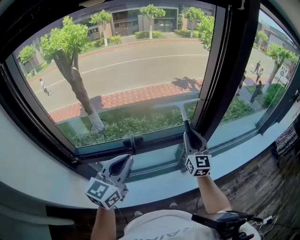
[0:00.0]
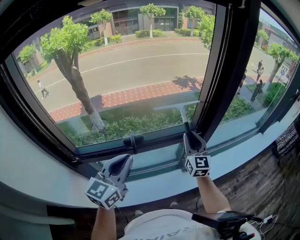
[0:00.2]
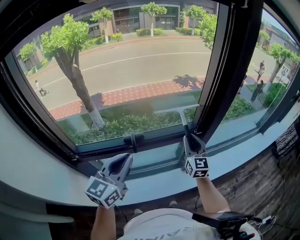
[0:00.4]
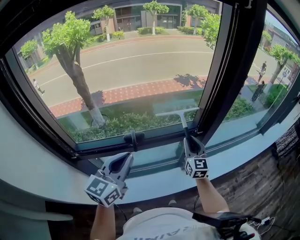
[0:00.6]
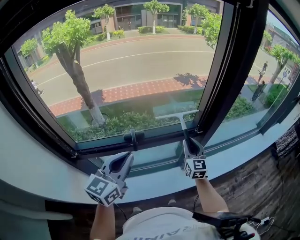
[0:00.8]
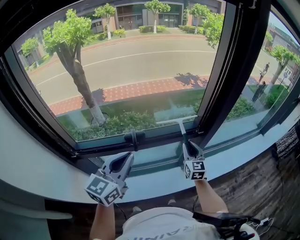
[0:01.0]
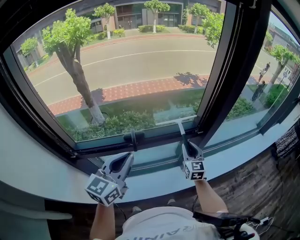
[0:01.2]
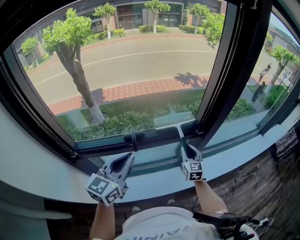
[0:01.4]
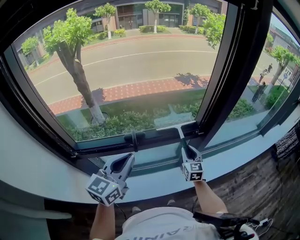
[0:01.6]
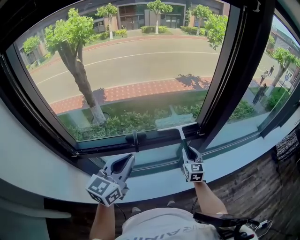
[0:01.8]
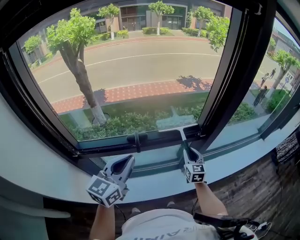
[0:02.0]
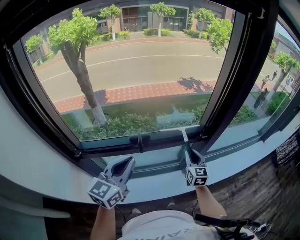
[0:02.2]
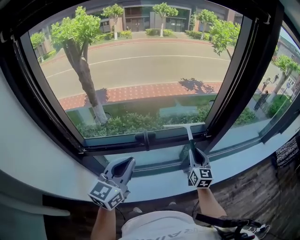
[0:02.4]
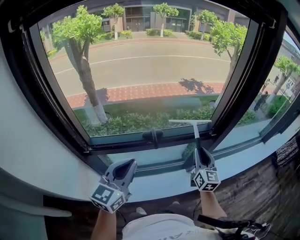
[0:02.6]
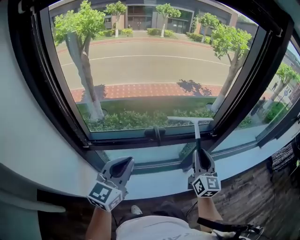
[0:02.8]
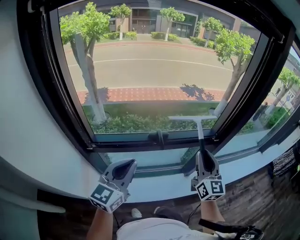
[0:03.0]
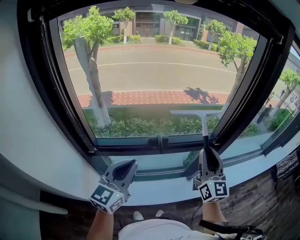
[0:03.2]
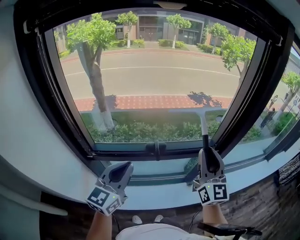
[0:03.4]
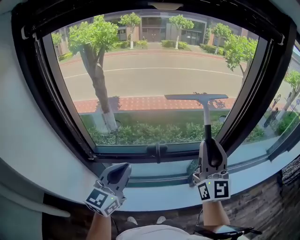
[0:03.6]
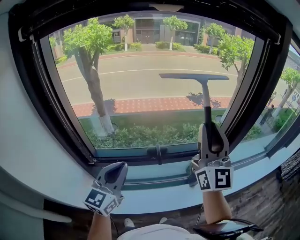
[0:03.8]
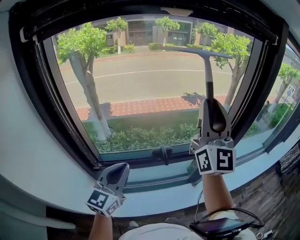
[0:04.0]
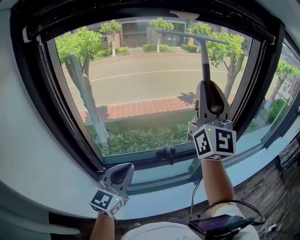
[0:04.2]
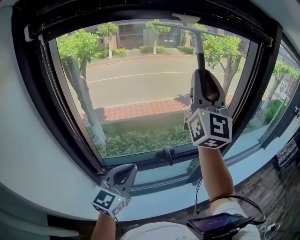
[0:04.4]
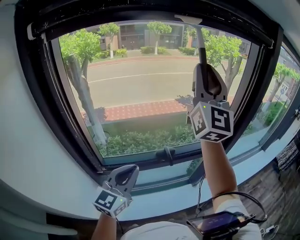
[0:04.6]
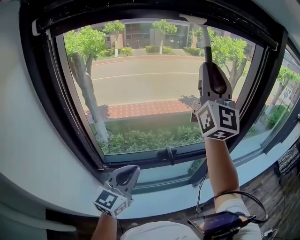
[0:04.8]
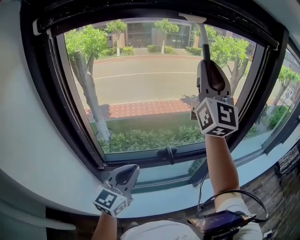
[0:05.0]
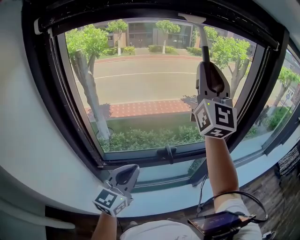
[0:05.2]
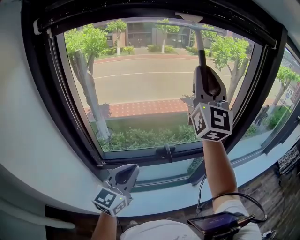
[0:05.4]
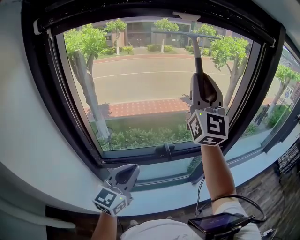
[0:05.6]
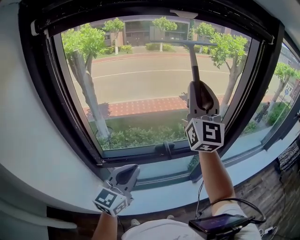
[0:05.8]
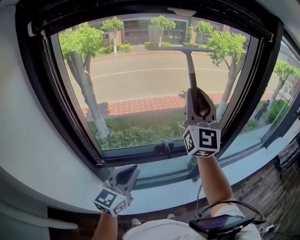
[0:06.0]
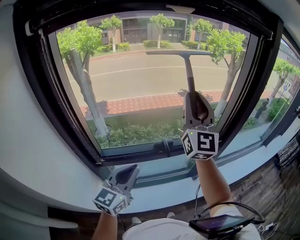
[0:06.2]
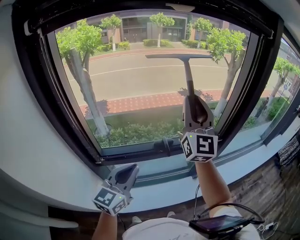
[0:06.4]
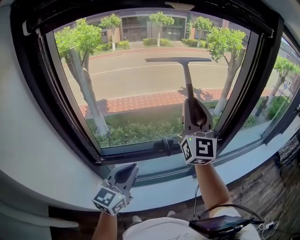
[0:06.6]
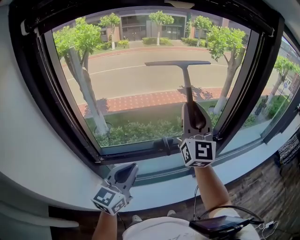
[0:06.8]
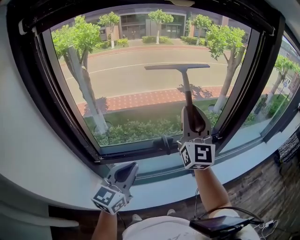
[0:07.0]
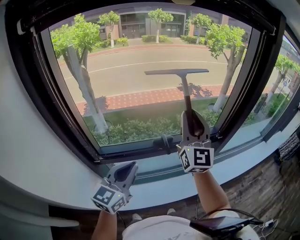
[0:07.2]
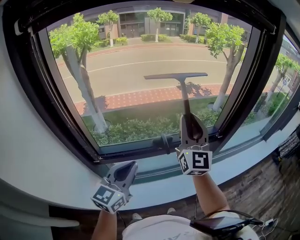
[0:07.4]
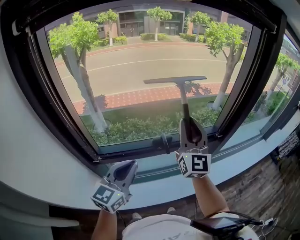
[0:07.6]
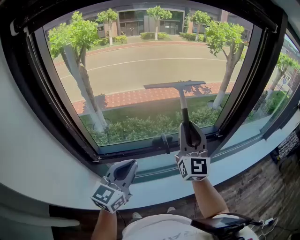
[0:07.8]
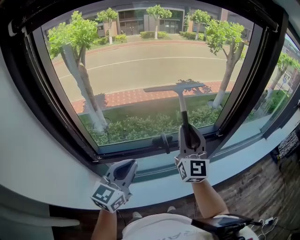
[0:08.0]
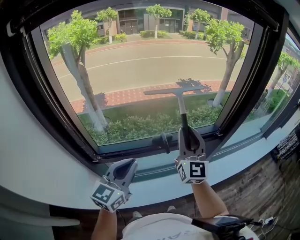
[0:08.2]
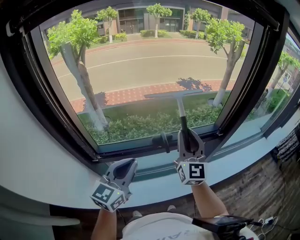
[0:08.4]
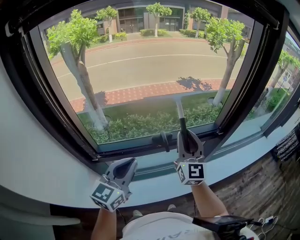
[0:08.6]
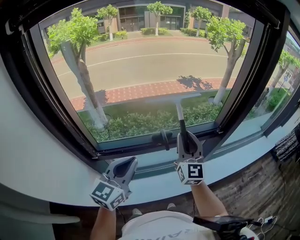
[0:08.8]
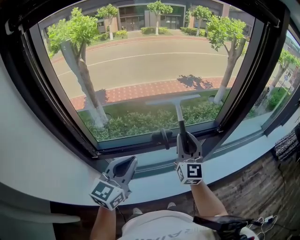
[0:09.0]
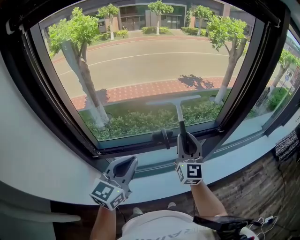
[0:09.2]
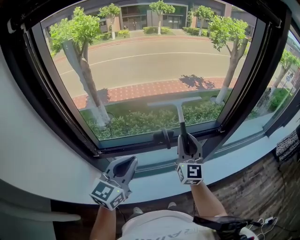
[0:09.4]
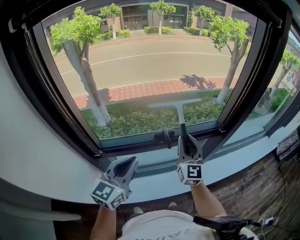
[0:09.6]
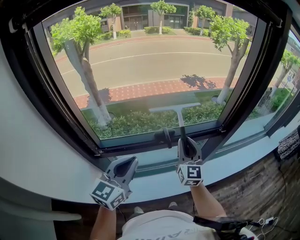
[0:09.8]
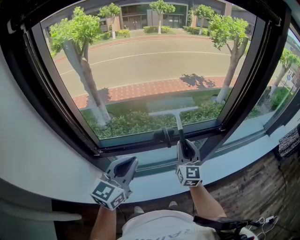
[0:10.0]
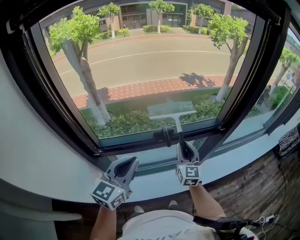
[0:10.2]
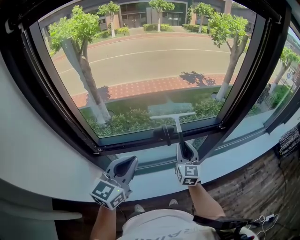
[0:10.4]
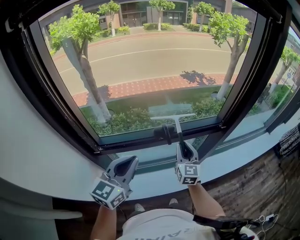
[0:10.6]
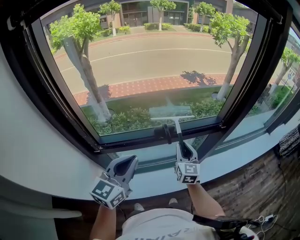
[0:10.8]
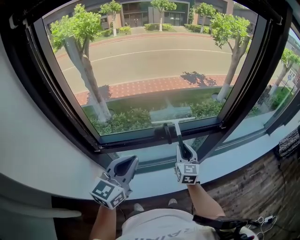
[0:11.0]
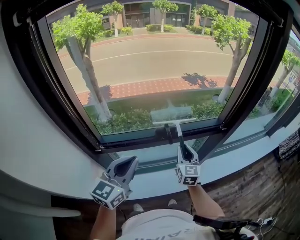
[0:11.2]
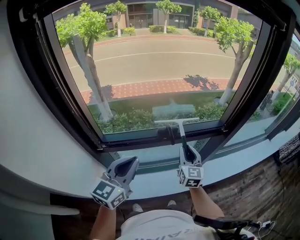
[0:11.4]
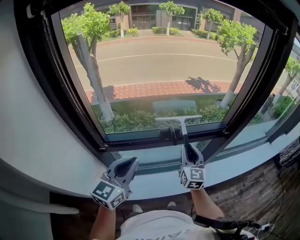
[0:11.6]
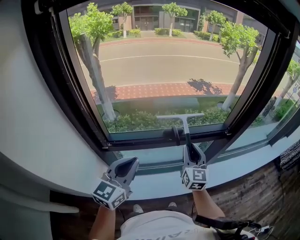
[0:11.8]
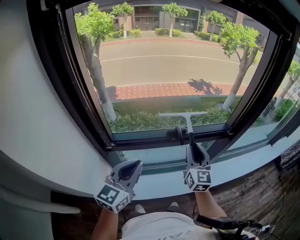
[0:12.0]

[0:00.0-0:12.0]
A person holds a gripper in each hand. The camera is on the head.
0:00.0 to 0:01.6: The right gripper moves downward, approximately 15 cm.
0:01.6 to 0:03.0: The right gripper shifts some 25 cm upward, backward and to the left, and turns by approximately 20 degrees; the left gripper heads to the left and backward, covering some 15 cm.
0:03.0 to 0:04.4: The right gripper travels upward by roughly 35 cm, and tilts its fingers some 30 degrees upward, while the left gripper moves to the left, roughly 5 cm.
0:04.4 to 0:06.0: The right gripper is displaced downward by about 10 cm.
0:06.0 to 0:07.6: The right gripper moves downward, approximately 15 cm.
0:07.6 to 0:09.0: The right gripper moves downward, about 10 cm.
0:09.0 to 0:10.4: The right gripper shifts some 10 cm downward.
0:10.4 to 0:12.0: The left gripper moves backward, approximately 5 cm. Meanwhile the right gripper is displaced upward by approximately 5 cm.

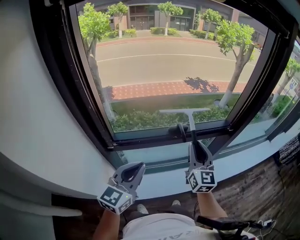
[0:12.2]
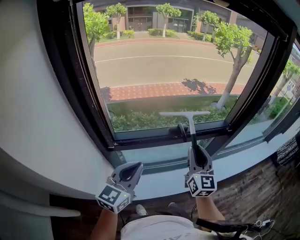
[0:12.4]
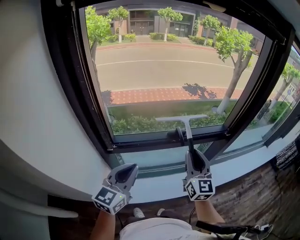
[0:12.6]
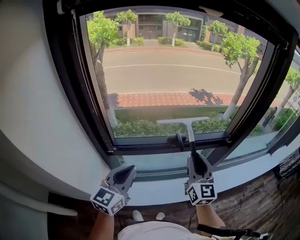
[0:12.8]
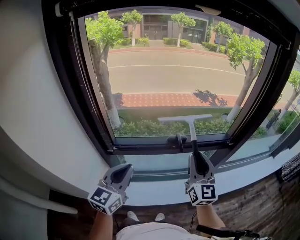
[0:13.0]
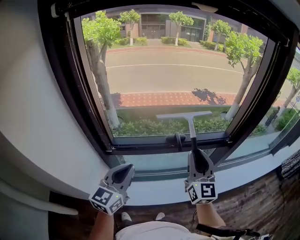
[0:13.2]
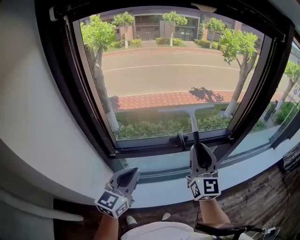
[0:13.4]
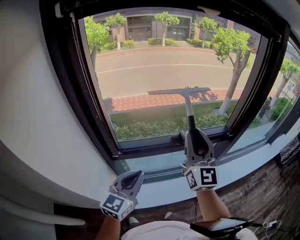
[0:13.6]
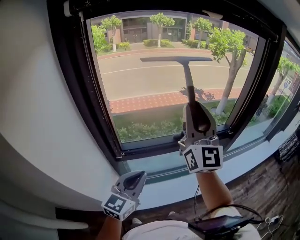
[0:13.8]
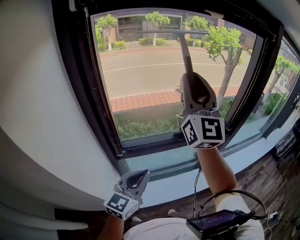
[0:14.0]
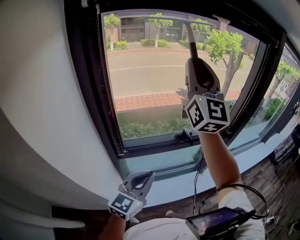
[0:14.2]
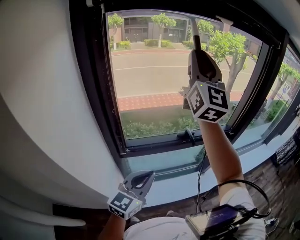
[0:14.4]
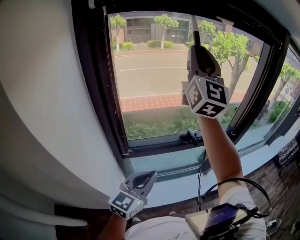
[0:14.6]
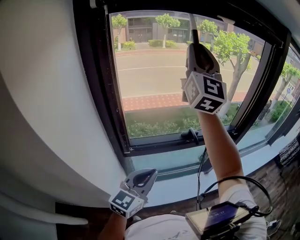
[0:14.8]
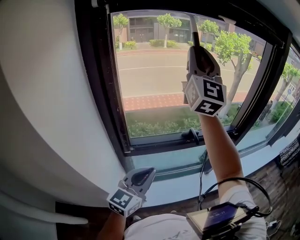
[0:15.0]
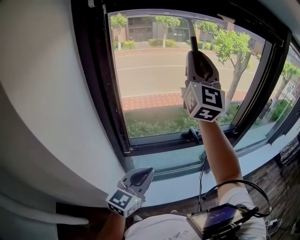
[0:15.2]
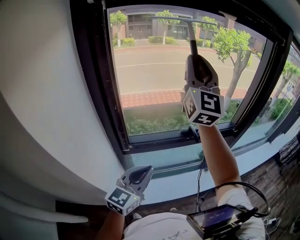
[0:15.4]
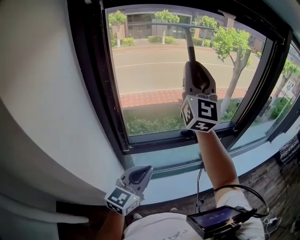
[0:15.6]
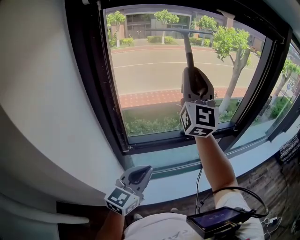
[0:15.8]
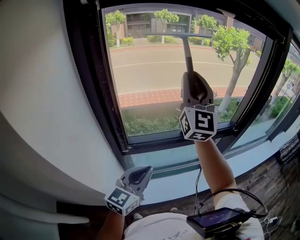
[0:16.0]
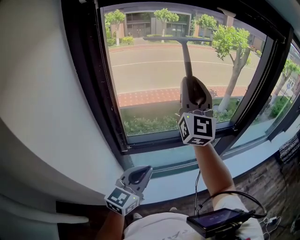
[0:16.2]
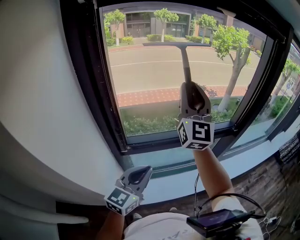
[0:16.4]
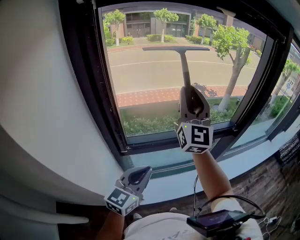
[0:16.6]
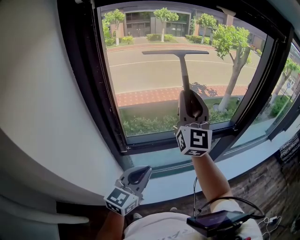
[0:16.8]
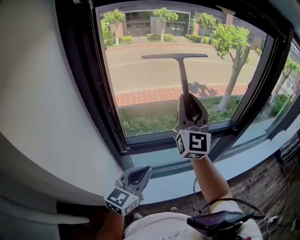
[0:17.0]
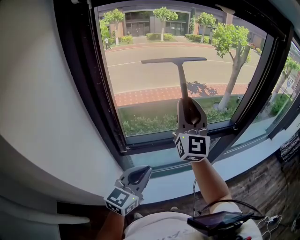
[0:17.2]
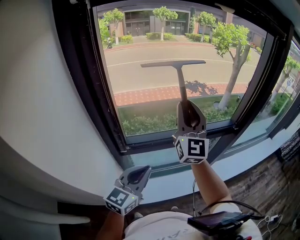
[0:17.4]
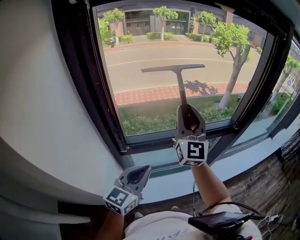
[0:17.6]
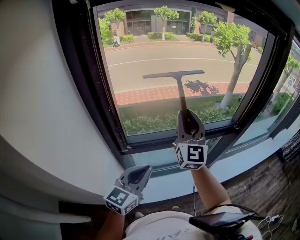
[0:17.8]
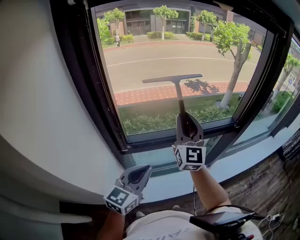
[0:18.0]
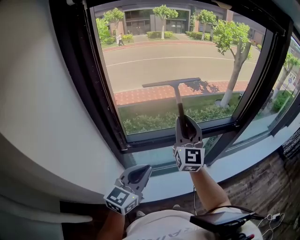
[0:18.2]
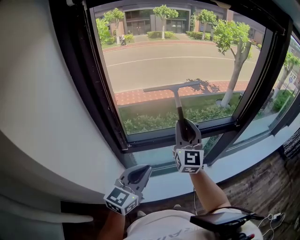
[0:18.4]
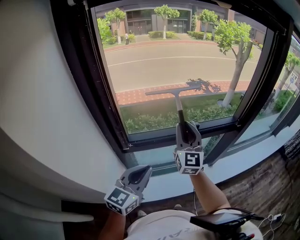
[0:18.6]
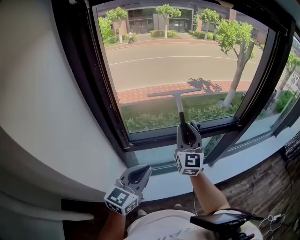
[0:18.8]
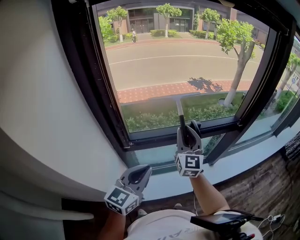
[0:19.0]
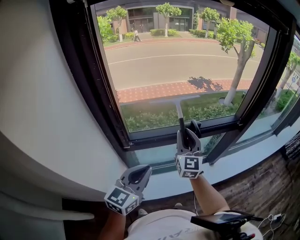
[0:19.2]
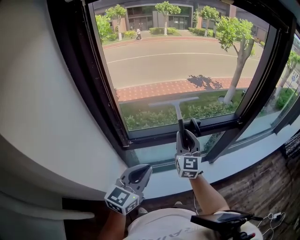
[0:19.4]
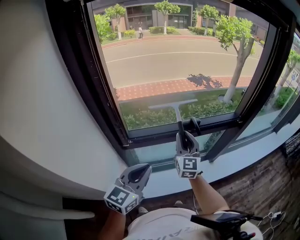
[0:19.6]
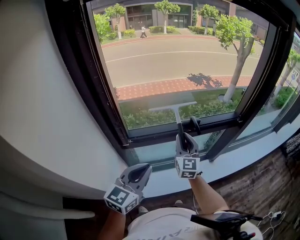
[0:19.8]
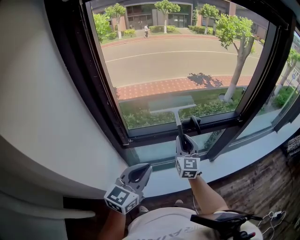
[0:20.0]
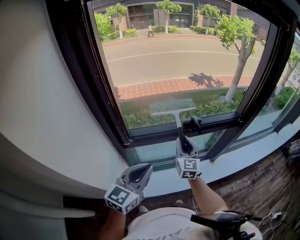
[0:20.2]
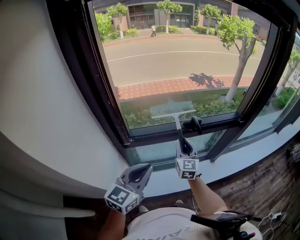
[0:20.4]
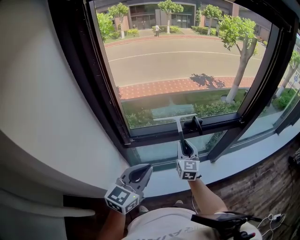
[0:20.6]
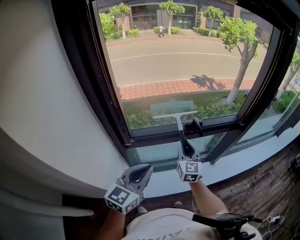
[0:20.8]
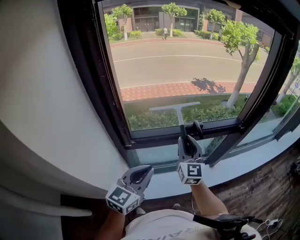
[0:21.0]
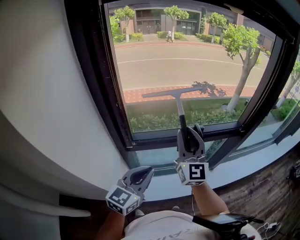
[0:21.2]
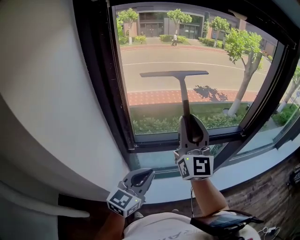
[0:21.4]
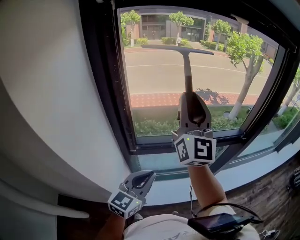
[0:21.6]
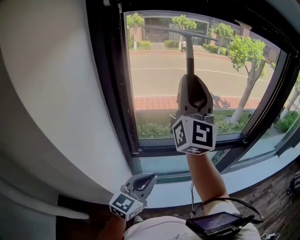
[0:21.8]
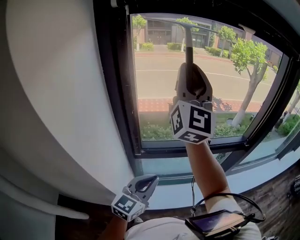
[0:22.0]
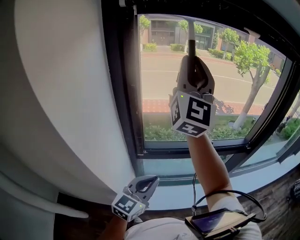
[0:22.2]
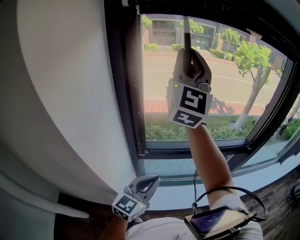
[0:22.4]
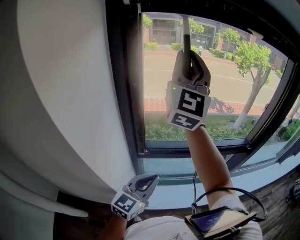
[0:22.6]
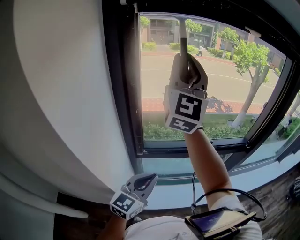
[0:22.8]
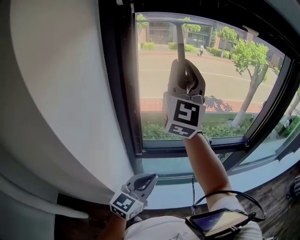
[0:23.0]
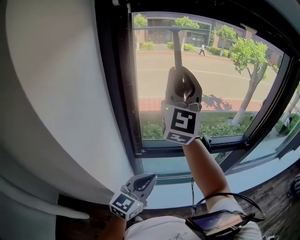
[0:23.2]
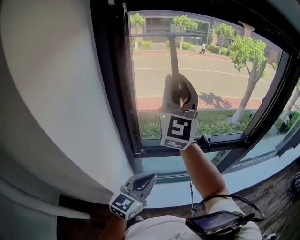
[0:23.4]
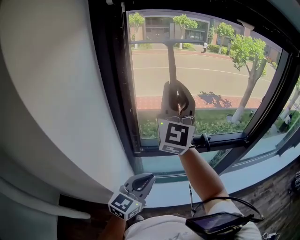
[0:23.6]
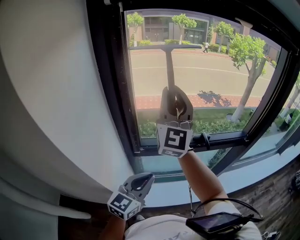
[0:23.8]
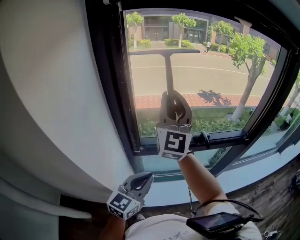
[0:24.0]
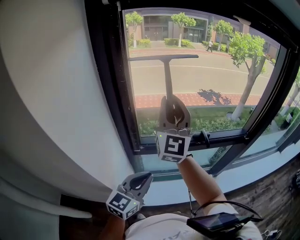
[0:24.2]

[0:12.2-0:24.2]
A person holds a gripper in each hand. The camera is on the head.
0:12.2 to 0:13.8: The right gripper goes about 25 cm upward and to the left, and turns by roughly 30 degrees; the left gripper changes place by approximately 5 cm.
0:13.8 to 0:15.2: The right gripper travels upward, to the left and forward by some 15 cm.
0:15.2 to 0:16.6: The right gripper goes about 15 cm downward.
0:16.6 to 0:18.2: The right gripper moves downward, about 15 cm.
0:18.2 to 0:19.8: The right gripper goes roughly 15 cm downward.
0:19.8 to 0:21.2: The right gripper is displaced upward by about 15 cm.
0:21.2 to 0:22.6: The right gripper moves upward, about 30 cm, and swivels some 20 degrees.
0:22.6 to 0:24.2: The right gripper moves downward, roughly 15 cm.
